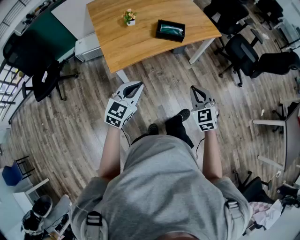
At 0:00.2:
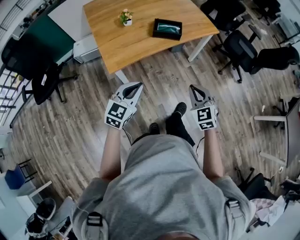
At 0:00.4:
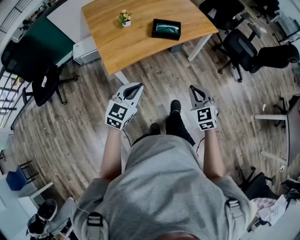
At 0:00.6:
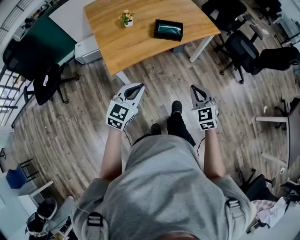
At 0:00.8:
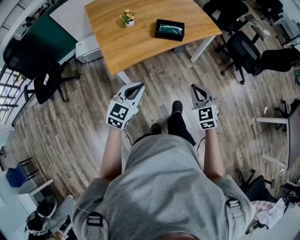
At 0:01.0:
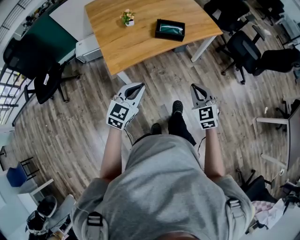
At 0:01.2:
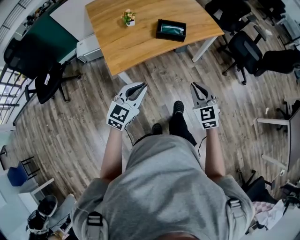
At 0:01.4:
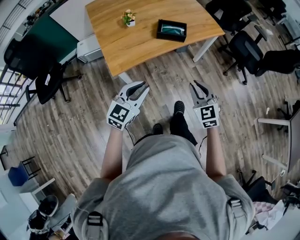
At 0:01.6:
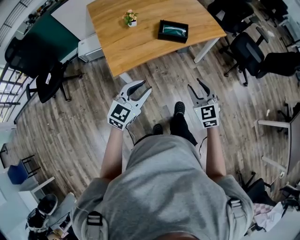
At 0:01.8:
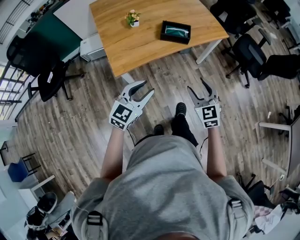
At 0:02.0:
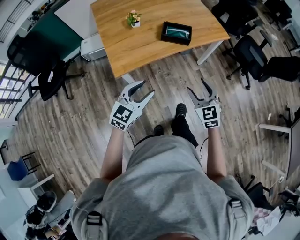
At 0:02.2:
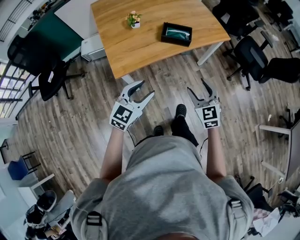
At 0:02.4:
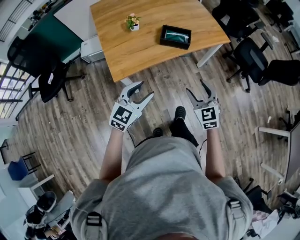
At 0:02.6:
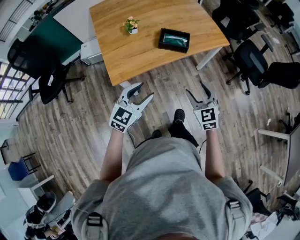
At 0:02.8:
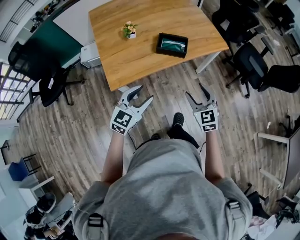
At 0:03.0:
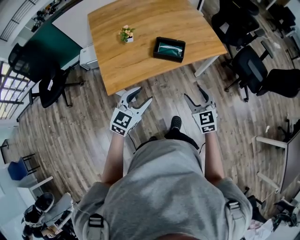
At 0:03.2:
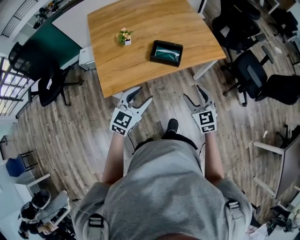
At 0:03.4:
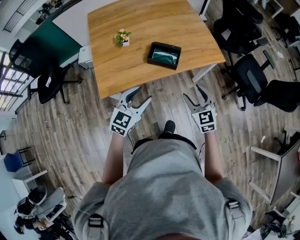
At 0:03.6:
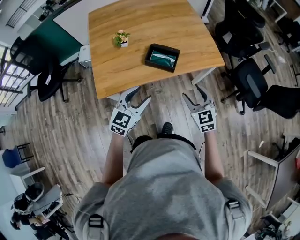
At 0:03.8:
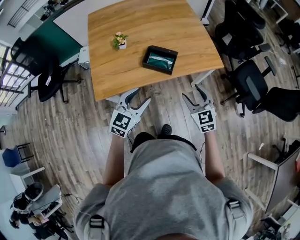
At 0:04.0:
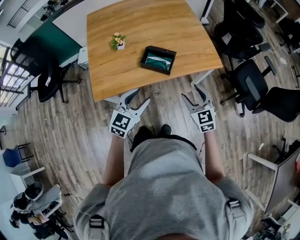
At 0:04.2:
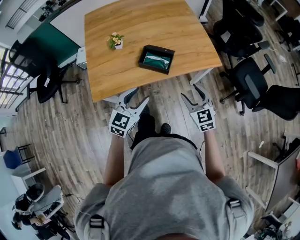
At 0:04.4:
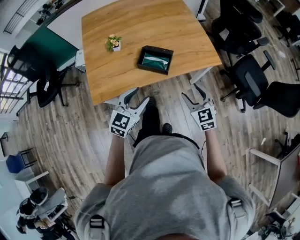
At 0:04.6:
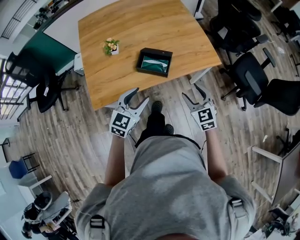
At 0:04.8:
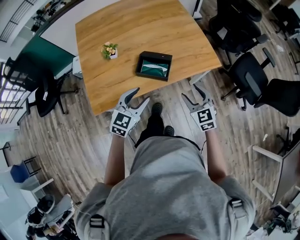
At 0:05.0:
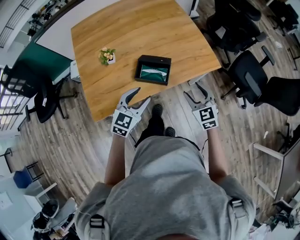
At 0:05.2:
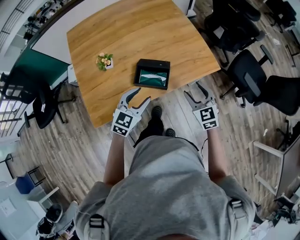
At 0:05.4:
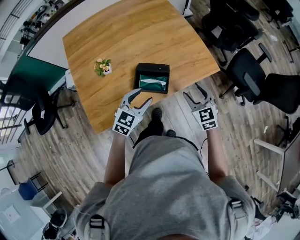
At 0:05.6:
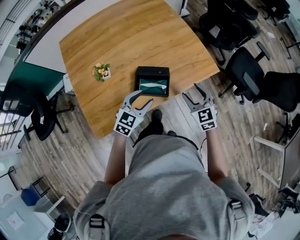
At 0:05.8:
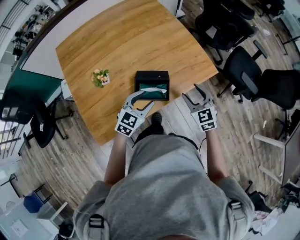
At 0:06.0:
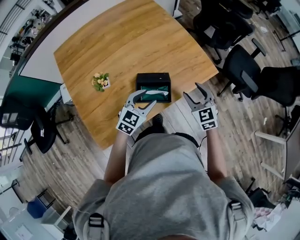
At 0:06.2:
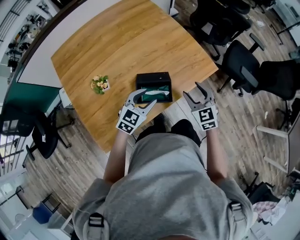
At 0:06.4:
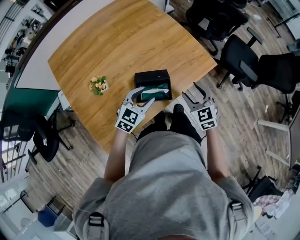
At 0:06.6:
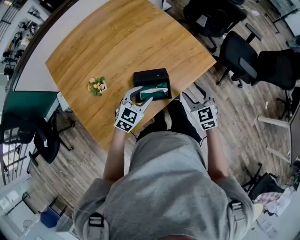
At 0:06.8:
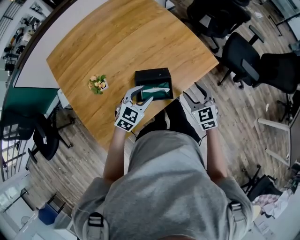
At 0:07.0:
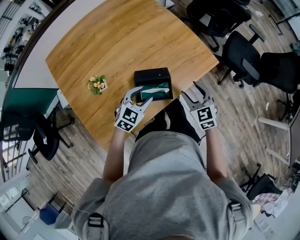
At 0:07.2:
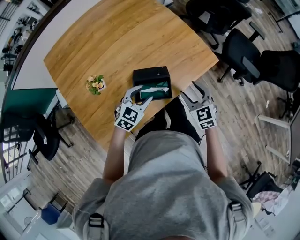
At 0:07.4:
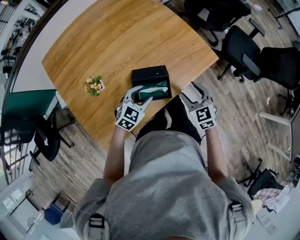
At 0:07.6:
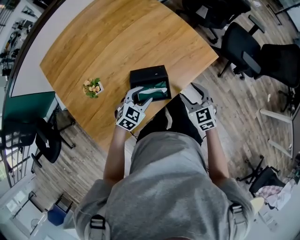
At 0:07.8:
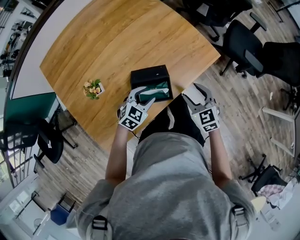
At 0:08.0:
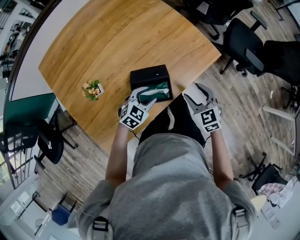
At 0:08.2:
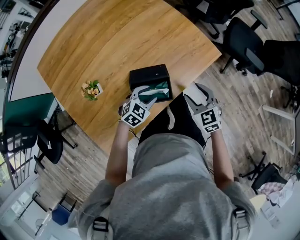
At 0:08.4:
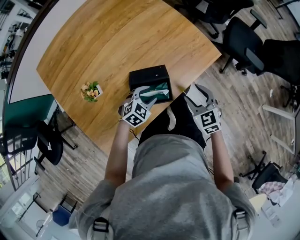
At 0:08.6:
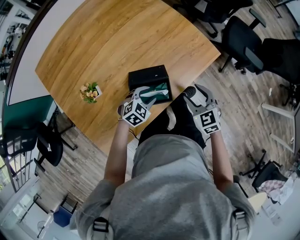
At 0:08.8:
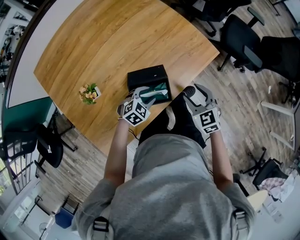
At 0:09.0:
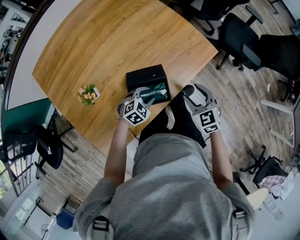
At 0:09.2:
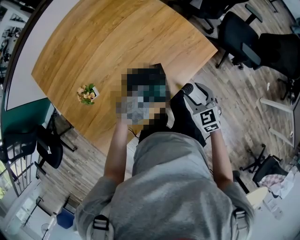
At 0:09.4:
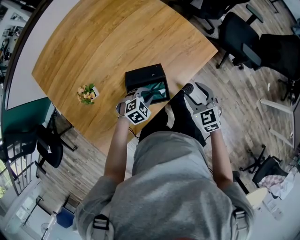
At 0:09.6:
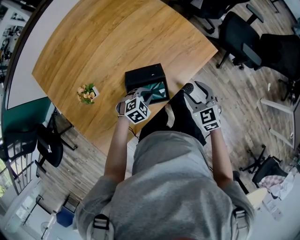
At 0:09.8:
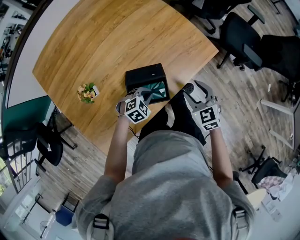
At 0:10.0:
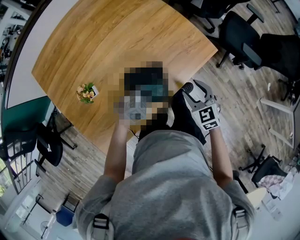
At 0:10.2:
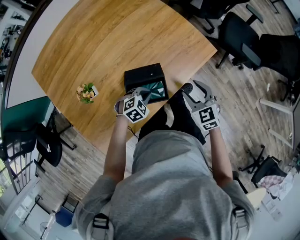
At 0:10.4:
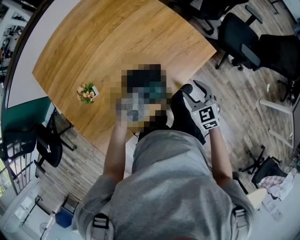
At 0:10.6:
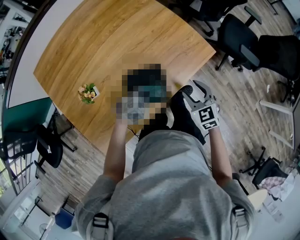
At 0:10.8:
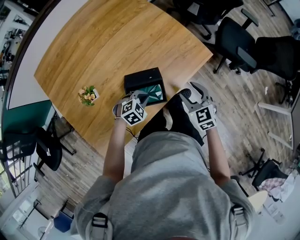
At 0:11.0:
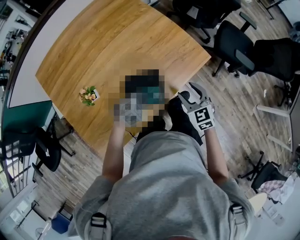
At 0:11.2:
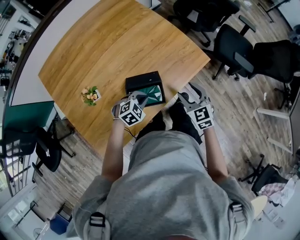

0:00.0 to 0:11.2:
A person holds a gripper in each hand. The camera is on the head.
0:00.0 to 0:01.6: The left gripper opens up. Meanwhile the right gripper moves forward, roughly 5 cm, and opens its fingers.
0:01.6 to 0:03.2: The grippers both shift forward and to the right by about 15 cm. The left gripper opens up; the right gripper opens.
0:03.2 to 0:04.8: Both grippers move forward and to the right, some 15 cm.
0:04.8 to 0:06.4: The grippers both shift forward by some 15 cm. The left gripper turns by approximately 20 degrees.
0:06.4 to 0:08.0: The right gripper heads downward, covering approximately 5 cm, while the left gripper goes roughly 10 cm downward.
0:08.0 to 0:09.6: The left gripper heads downward, covering approximately 5 cm, and closes its fingers.
0:09.6 to 0:11.2: The left gripper travels upward by some 5 cm.

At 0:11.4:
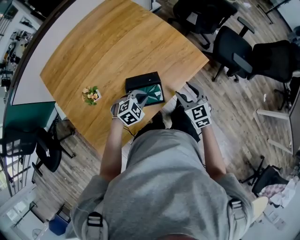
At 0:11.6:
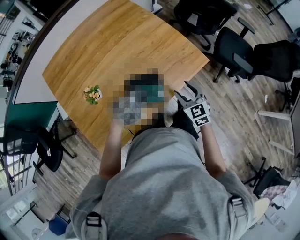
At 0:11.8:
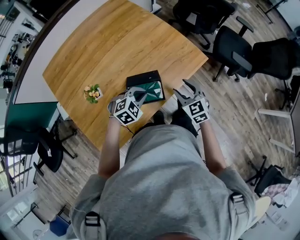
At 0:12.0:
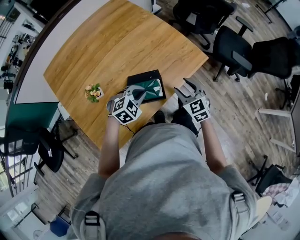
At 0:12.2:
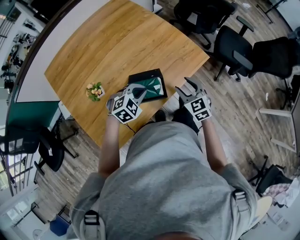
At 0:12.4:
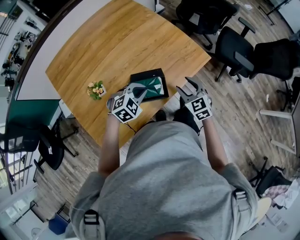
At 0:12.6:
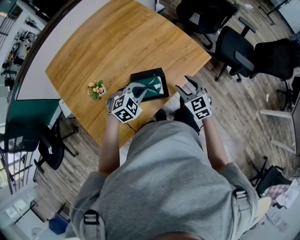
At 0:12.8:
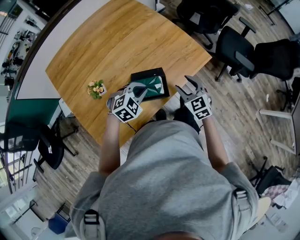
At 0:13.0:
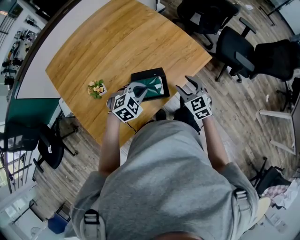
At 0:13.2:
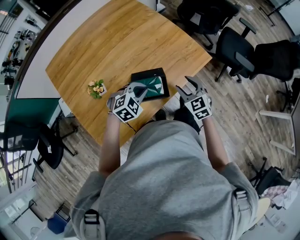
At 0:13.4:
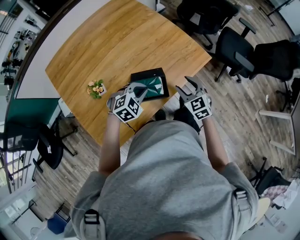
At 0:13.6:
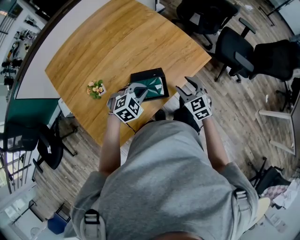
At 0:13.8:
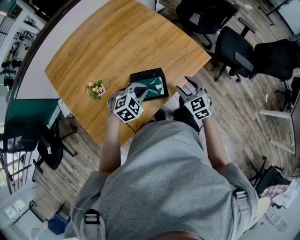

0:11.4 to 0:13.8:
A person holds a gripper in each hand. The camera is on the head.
0:11.4 to 0:12.6: The left gripper shifts roughly 5 cm upward.
0:12.6 to 0:13.8: Neither gripper changes place.

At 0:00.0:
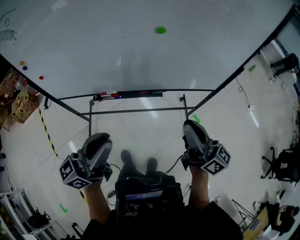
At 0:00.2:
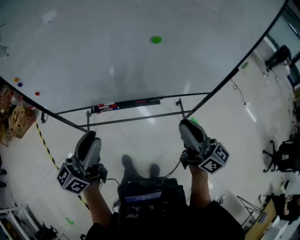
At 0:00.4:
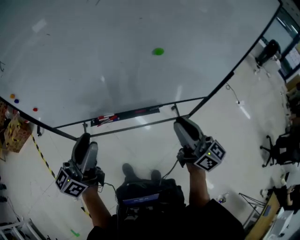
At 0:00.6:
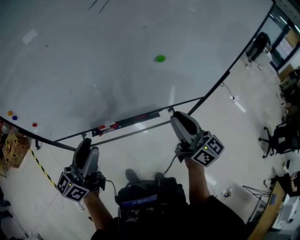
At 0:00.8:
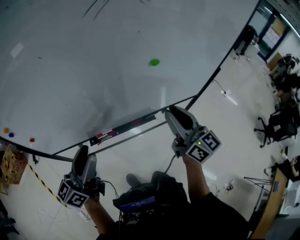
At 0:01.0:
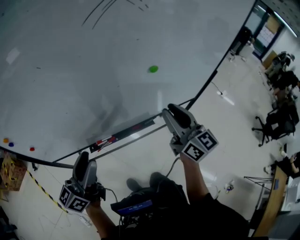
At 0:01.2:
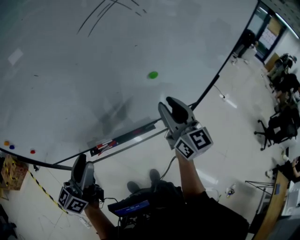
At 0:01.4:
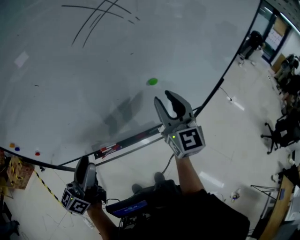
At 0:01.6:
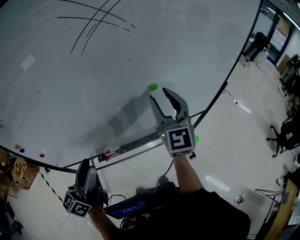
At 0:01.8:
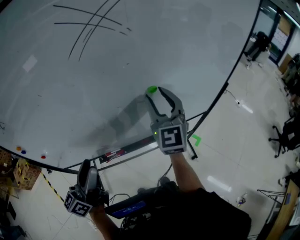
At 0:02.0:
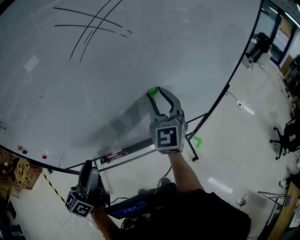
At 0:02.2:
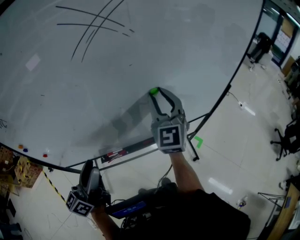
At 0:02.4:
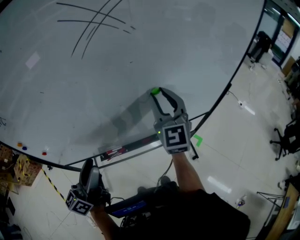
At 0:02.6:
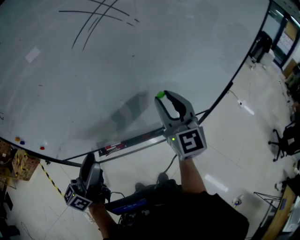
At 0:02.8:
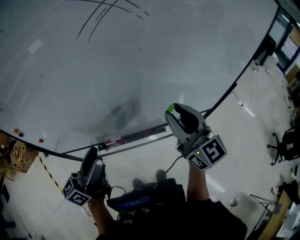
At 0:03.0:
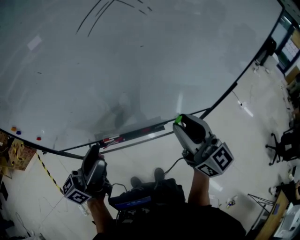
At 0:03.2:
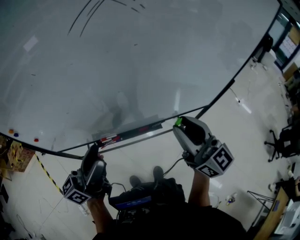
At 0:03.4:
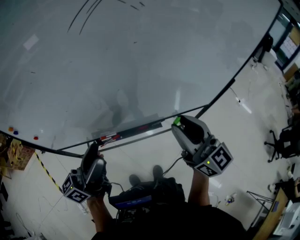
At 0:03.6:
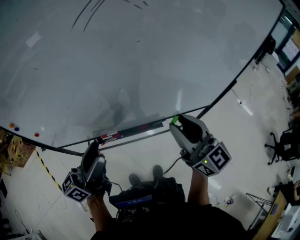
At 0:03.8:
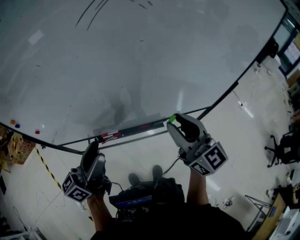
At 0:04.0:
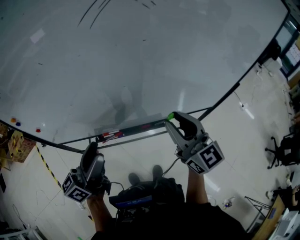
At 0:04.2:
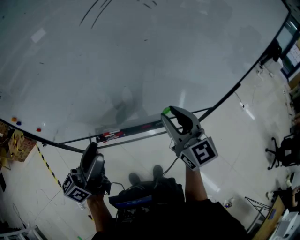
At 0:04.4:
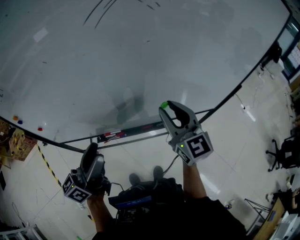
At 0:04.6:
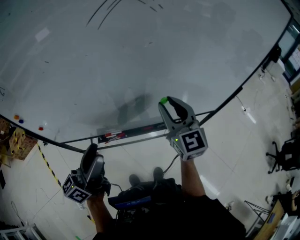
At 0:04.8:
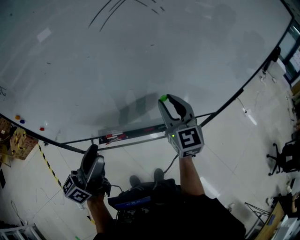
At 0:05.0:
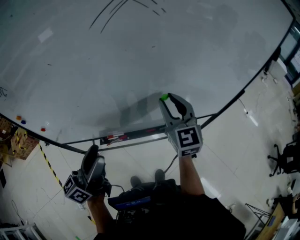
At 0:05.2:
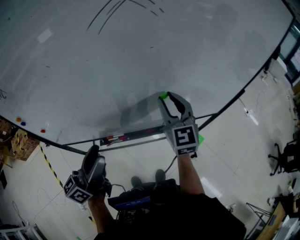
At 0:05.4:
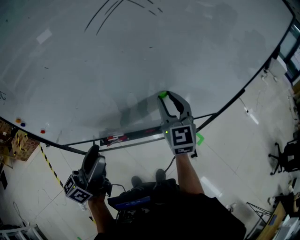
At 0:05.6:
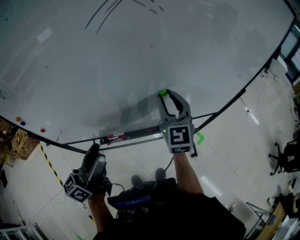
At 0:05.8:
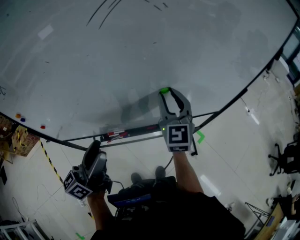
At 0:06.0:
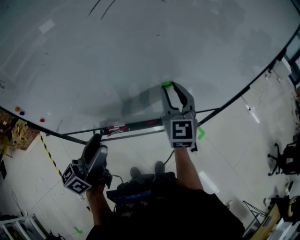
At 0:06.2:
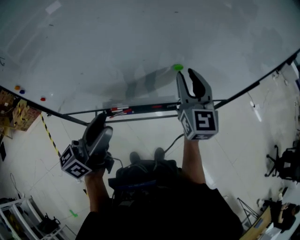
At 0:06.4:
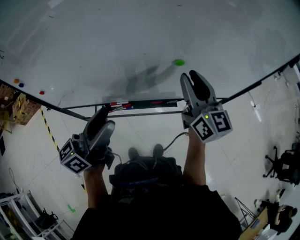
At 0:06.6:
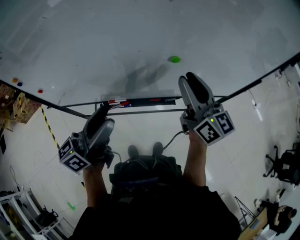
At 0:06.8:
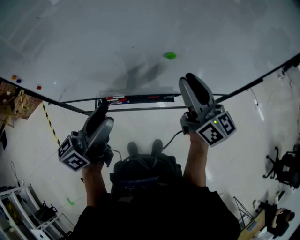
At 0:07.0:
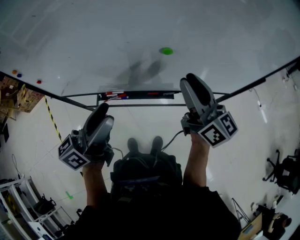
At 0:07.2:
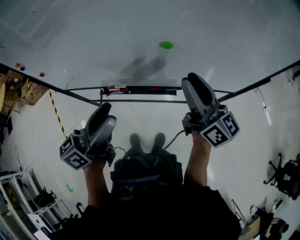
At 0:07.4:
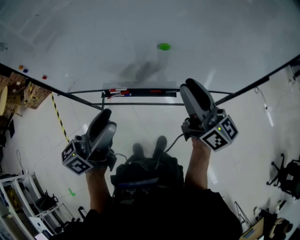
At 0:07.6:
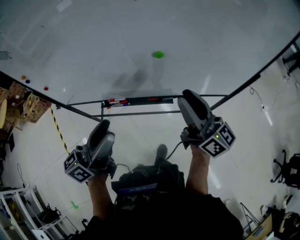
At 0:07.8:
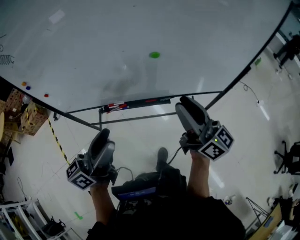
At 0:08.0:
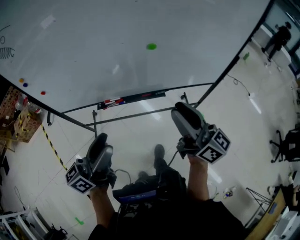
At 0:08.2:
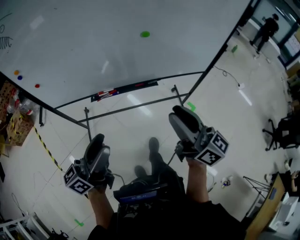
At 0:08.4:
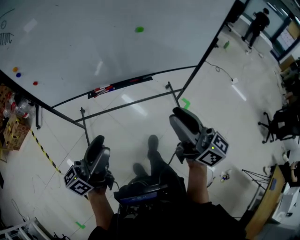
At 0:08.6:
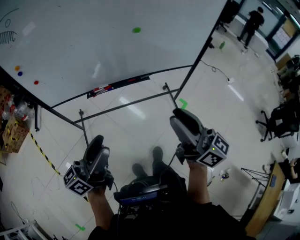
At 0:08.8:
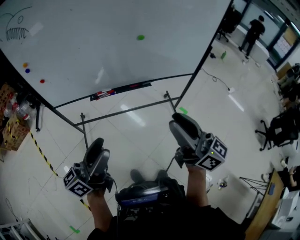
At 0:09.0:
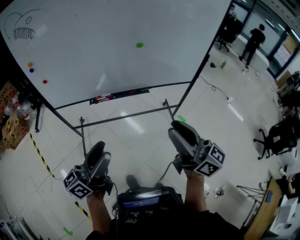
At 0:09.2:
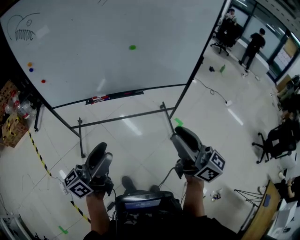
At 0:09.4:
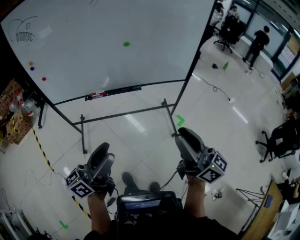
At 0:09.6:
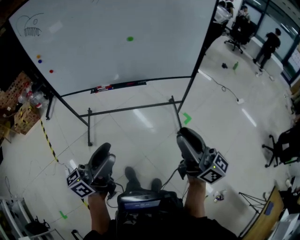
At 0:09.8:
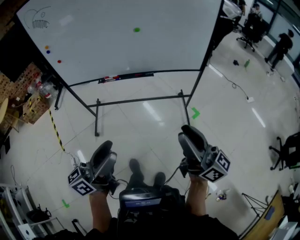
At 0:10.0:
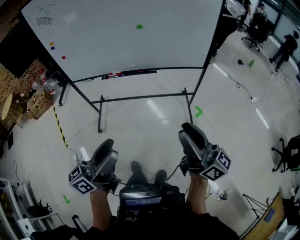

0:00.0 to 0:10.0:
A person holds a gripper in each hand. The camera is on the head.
0:00.0 to 0:01.4: The right gripper is displaced forward, to the left and upward by some 25 cm, twists some 50 degrees counterclockwise, seen from behind, and opens up. Meanwhile the left gripper moves to the left and forward, approximately 20 cm, and opens up.
0:01.4 to 0:02.8: The right gripper shifts roughly 5 cm backward, and rotates approximately 20 degrees.
0:02.8 to 0:04.2: The grippers stay close to where they were, moving slightly.
0:04.2 to 0:05.8: The right gripper moves forward, approximately 10 cm, and turns by approximately 20 degrees.
0:05.8 to 0:07.2: The left gripper travels to the right by about 10 cm, while the right gripper shifts about 10 cm to the right and backward, and rotates around the line of its fingers by approximately 50 degrees, clockwise from behind.
0:07.2 to 0:08.6: Both grippers travel together backward, approximately 30 cm.
0:08.6 to 0:10.0: The grippers both shift backward and to the right by some 25 cm.
